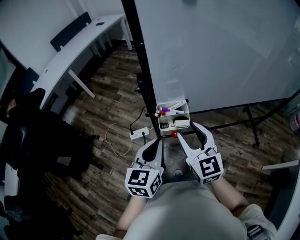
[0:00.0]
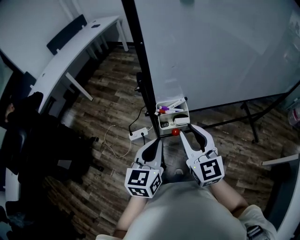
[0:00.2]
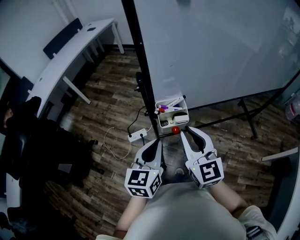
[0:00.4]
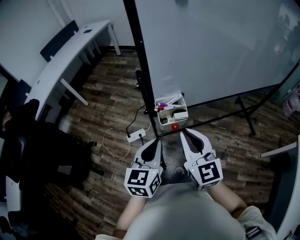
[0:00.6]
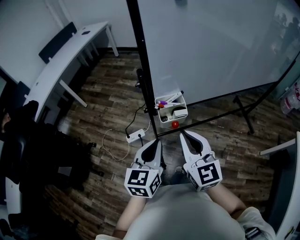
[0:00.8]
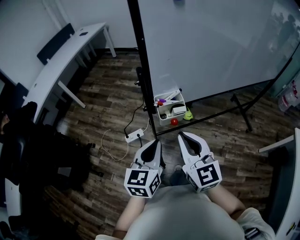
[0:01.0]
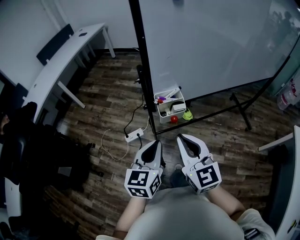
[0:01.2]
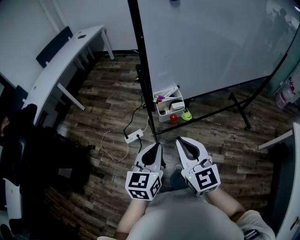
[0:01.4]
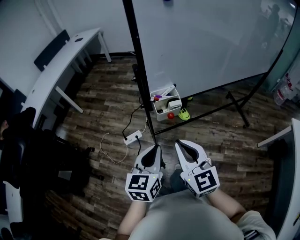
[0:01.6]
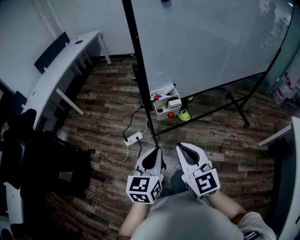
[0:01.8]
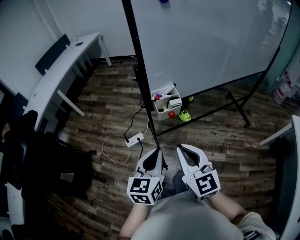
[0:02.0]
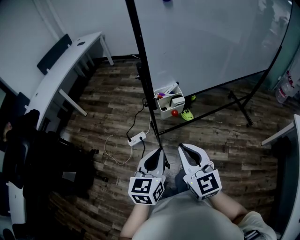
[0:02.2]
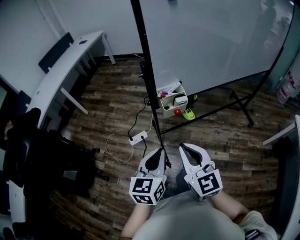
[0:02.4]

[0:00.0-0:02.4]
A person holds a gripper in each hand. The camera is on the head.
0:00.0 to 0:01.2: The right gripper shifts approximately 10 cm backward, and closes; the left gripper goes roughly 5 cm backward.
0:01.2 to 0:02.4: The grippers both shift backward by some 5 cm.

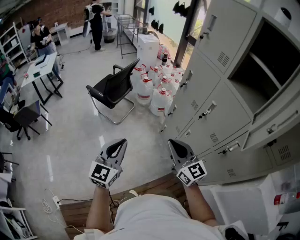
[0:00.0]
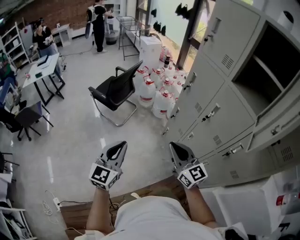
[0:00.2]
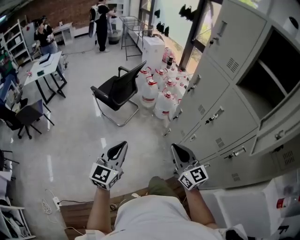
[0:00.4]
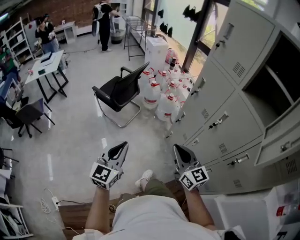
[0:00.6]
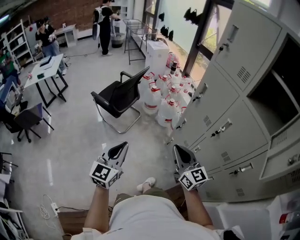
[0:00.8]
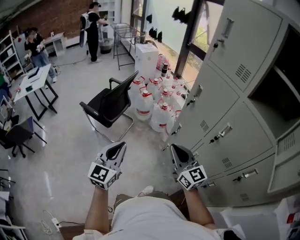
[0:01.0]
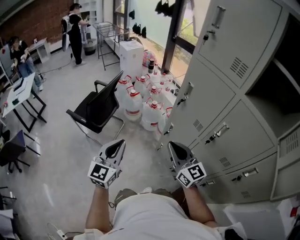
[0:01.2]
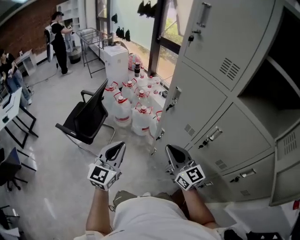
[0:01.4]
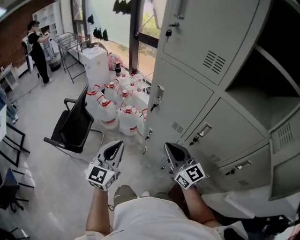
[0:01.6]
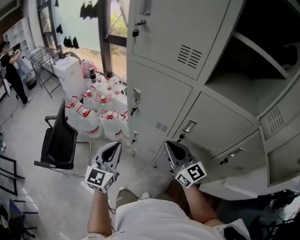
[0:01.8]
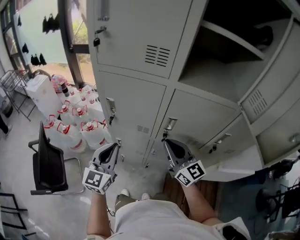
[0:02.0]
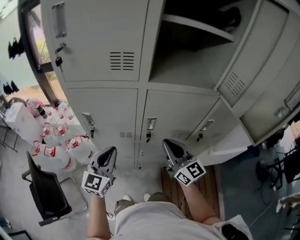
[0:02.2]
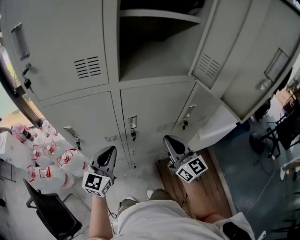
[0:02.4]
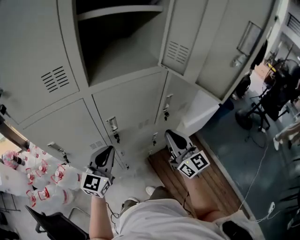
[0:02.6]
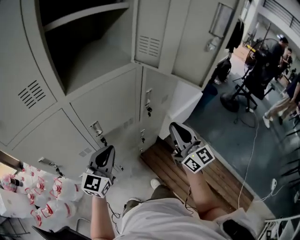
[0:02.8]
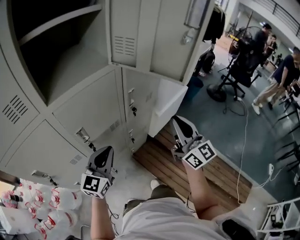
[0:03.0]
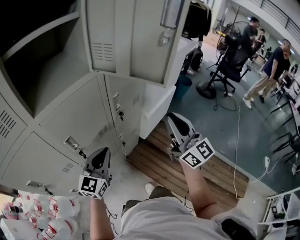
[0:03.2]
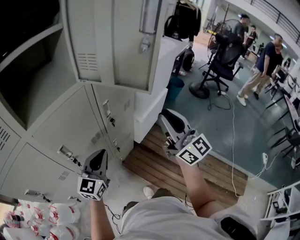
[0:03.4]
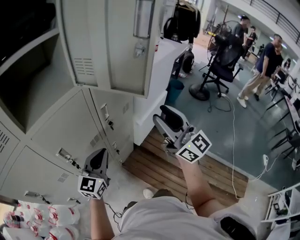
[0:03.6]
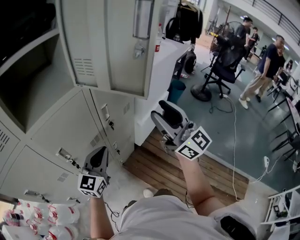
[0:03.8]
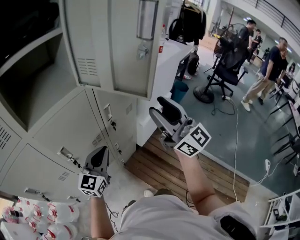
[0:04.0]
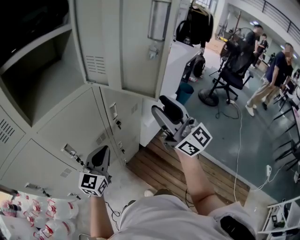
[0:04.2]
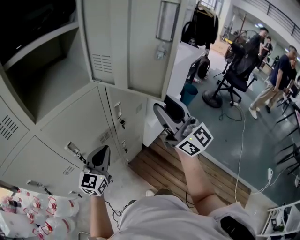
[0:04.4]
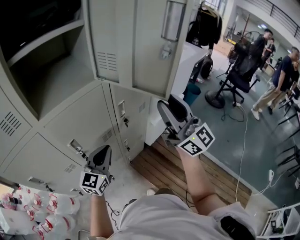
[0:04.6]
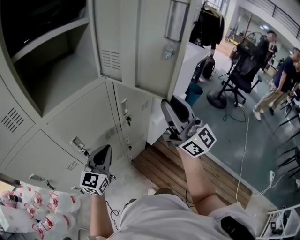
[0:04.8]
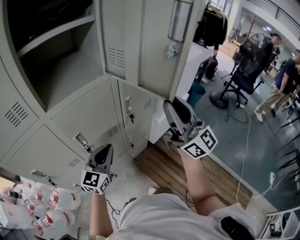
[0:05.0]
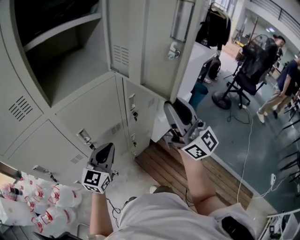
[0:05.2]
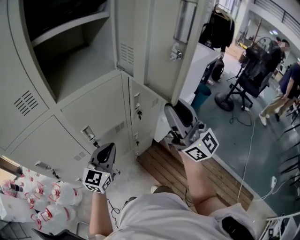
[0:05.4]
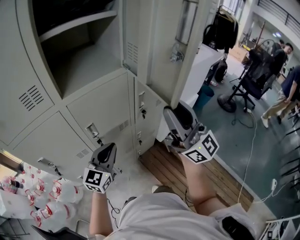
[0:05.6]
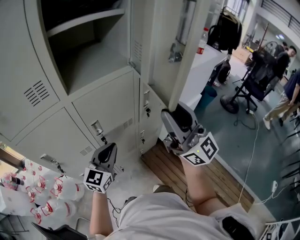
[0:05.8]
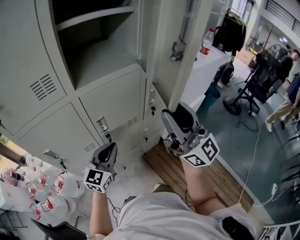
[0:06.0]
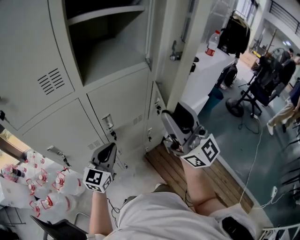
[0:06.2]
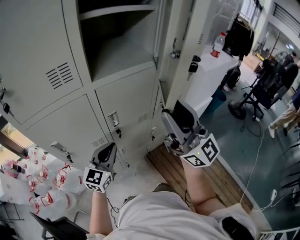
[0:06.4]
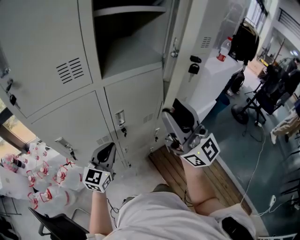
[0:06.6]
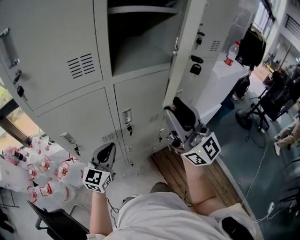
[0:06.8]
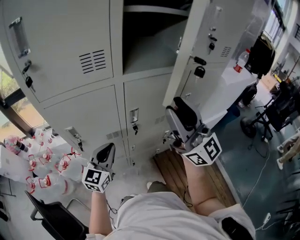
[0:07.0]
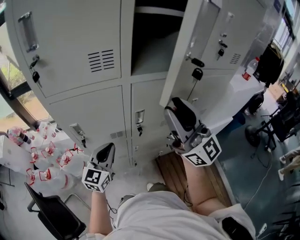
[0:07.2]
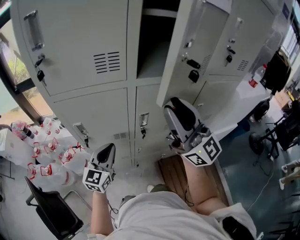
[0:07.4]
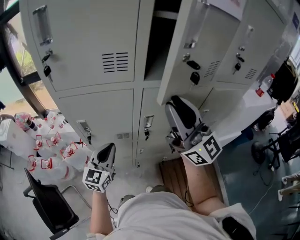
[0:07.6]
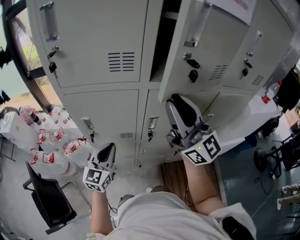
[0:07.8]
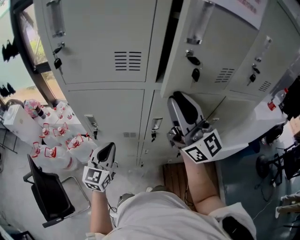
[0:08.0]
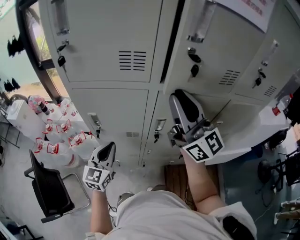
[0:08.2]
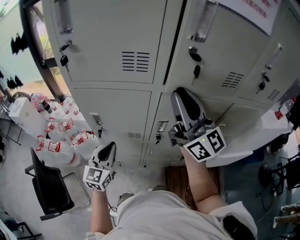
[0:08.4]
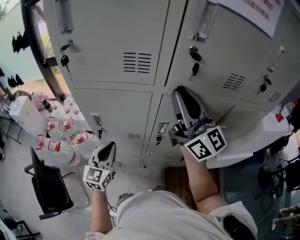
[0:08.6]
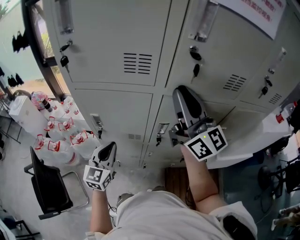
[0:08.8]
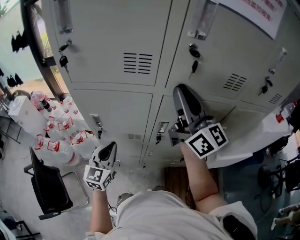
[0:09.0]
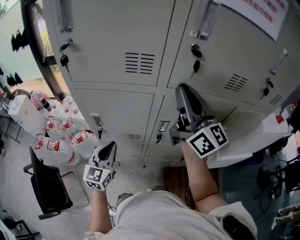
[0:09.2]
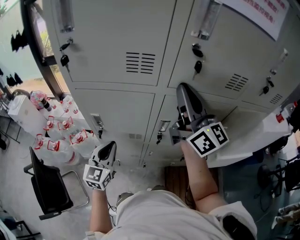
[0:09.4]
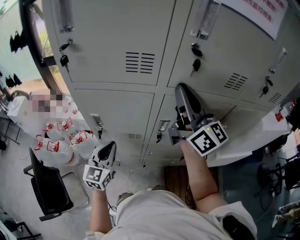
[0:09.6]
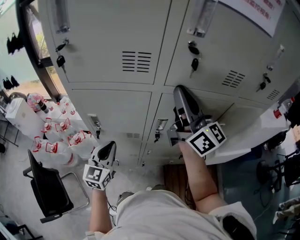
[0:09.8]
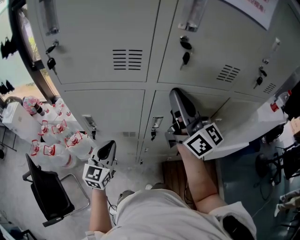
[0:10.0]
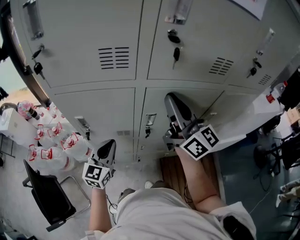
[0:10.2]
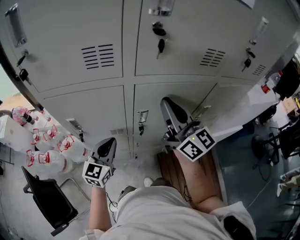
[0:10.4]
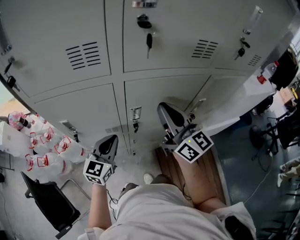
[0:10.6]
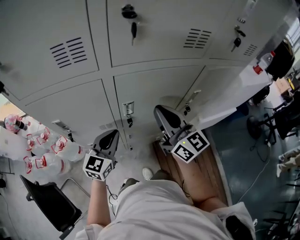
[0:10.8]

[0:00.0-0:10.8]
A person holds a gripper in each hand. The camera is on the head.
0:00.0 to 0:01.6: The left gripper goes approximately 35 cm forward, and turns by some 20 degrees. Meanwhile the right gripper heads forward and to the right, covering approximately 30 cm, and changes its angle by about 20 degrees.
0:01.6 to 0:03.0: The right gripper changes place by approximately 35 cm, and swivels about 90 degrees; the left gripper moves roughly 35 cm, and rotates some 80 degrees.
0:03.0 to 0:04.6: The right gripper goes some 10 cm upward, and opens up.
0:04.6 to 0:06.2: Both grippers travel together to the left and backward, approximately 15 cm.
0:06.2 to 0:07.8: The left gripper moves about 15 cm, and turns by approximately 30 degrees. The right gripper moves some 15 cm, and turns by about 20 degrees.
0:07.8 to 0:09.2: The right gripper heads forward, covering approximately 10 cm.
0:09.2 to 0:10.8: The right gripper moves downward and to the right, approximately 20 cm; the left gripper travels to the right by approximately 15 cm, and changes its angle by some 20 degrees.

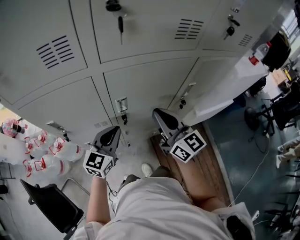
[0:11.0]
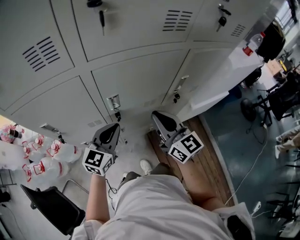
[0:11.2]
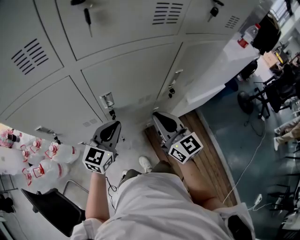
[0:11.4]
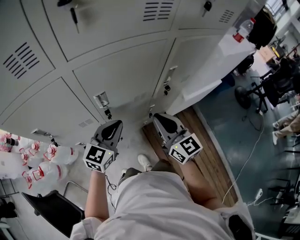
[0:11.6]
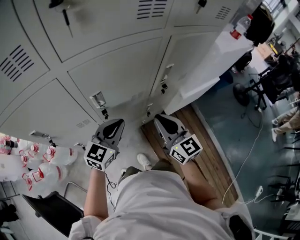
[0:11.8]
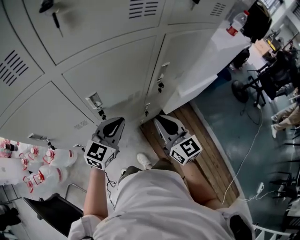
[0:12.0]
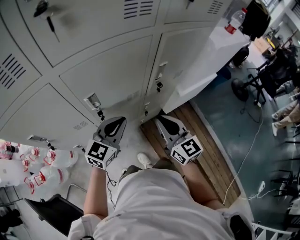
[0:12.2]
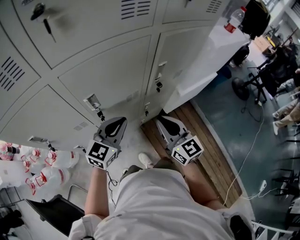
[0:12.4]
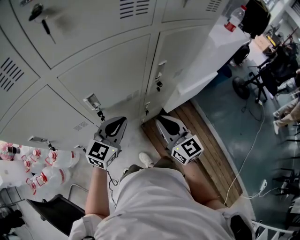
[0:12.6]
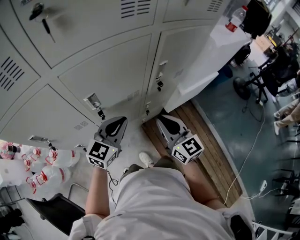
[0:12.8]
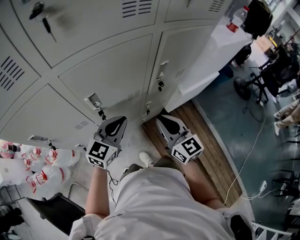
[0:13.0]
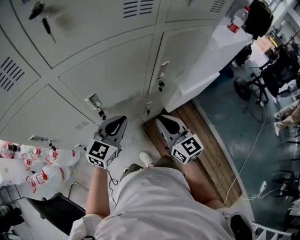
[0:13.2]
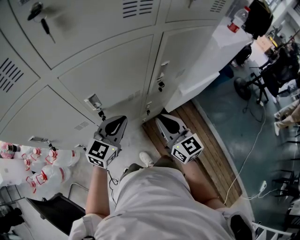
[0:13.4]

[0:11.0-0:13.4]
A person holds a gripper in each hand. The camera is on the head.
0:11.0 to 0:12.2: The right gripper travels to the right and downward by approximately 15 cm. The left gripper heads to the right, covering roughly 10 cm.
0:12.2 to 0:13.4: Both grippers stay about where they are.

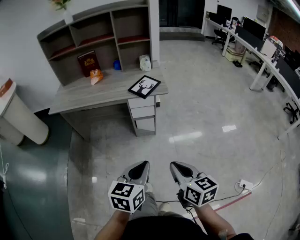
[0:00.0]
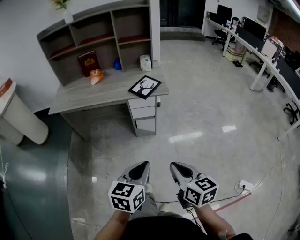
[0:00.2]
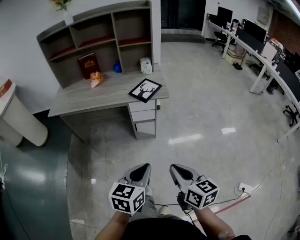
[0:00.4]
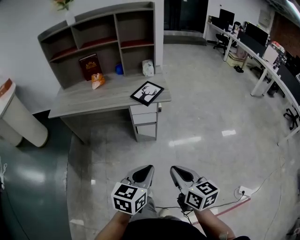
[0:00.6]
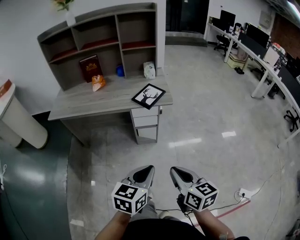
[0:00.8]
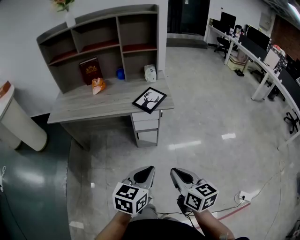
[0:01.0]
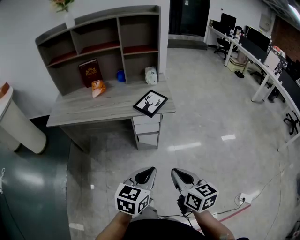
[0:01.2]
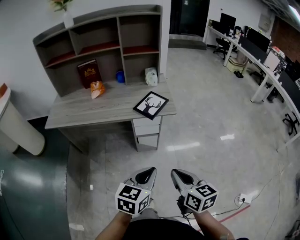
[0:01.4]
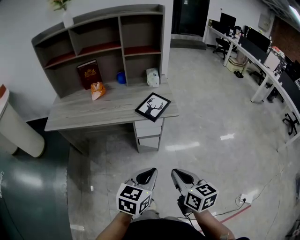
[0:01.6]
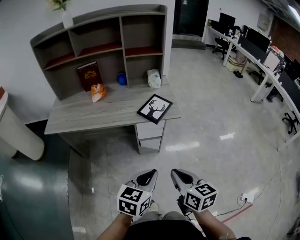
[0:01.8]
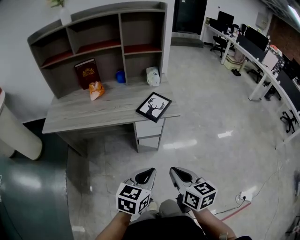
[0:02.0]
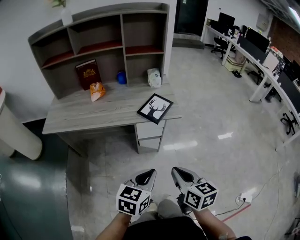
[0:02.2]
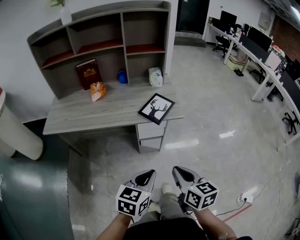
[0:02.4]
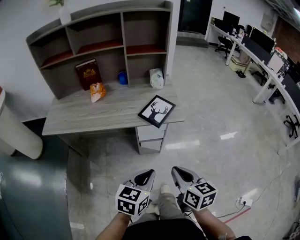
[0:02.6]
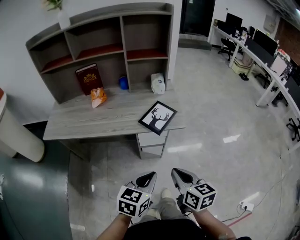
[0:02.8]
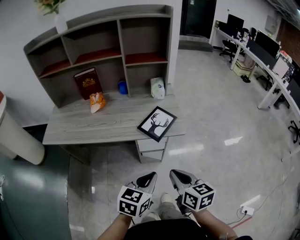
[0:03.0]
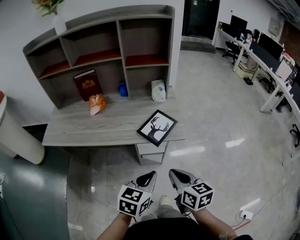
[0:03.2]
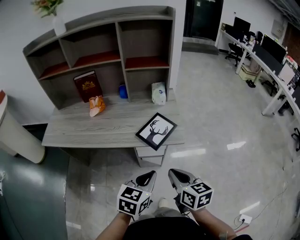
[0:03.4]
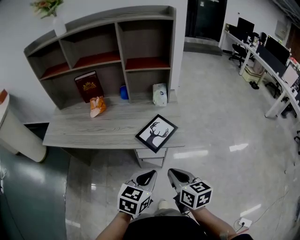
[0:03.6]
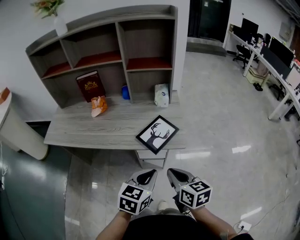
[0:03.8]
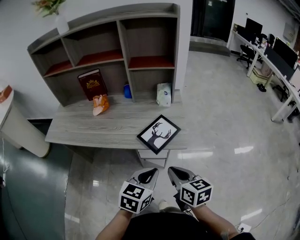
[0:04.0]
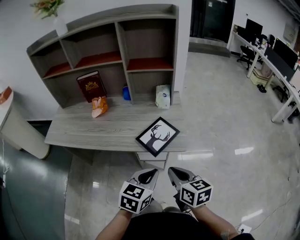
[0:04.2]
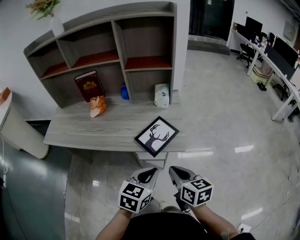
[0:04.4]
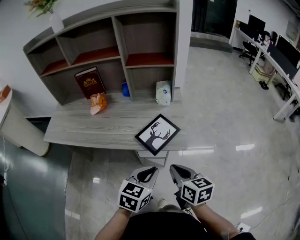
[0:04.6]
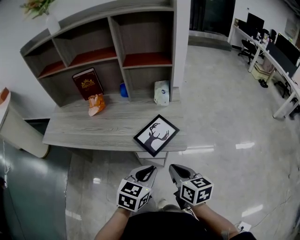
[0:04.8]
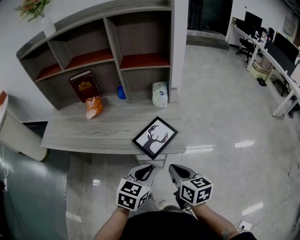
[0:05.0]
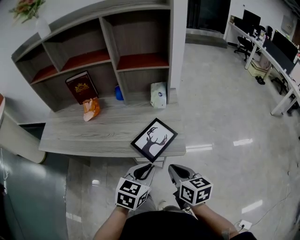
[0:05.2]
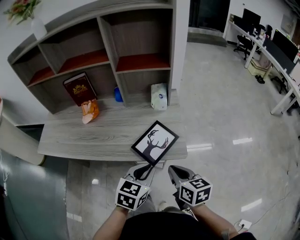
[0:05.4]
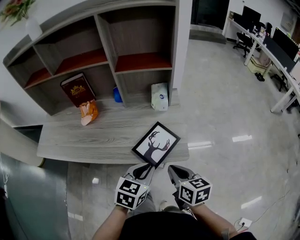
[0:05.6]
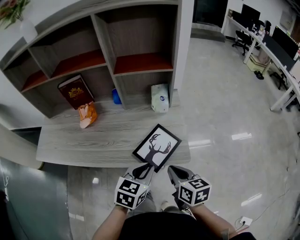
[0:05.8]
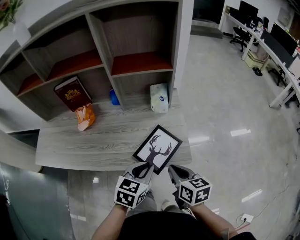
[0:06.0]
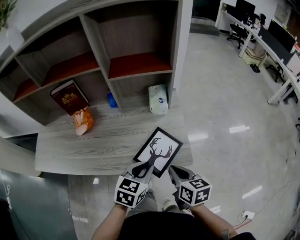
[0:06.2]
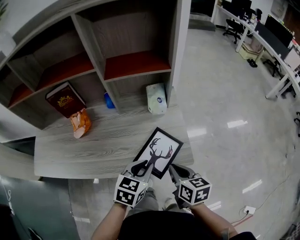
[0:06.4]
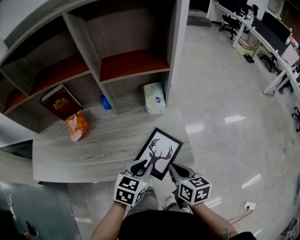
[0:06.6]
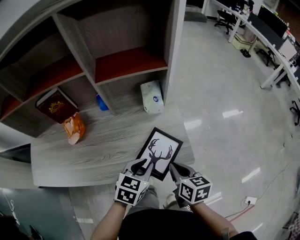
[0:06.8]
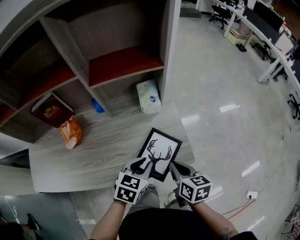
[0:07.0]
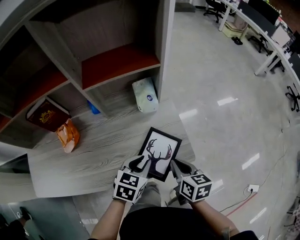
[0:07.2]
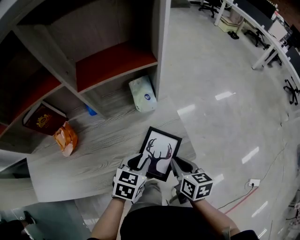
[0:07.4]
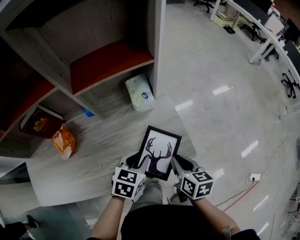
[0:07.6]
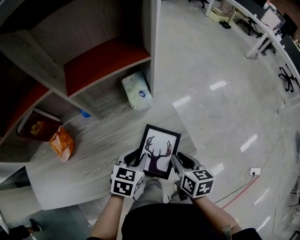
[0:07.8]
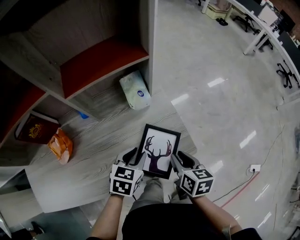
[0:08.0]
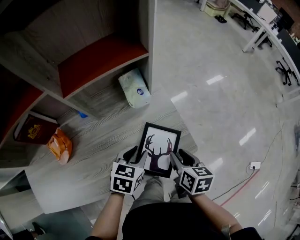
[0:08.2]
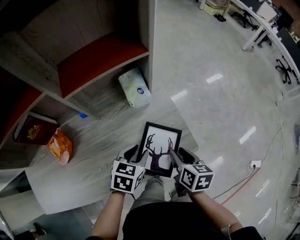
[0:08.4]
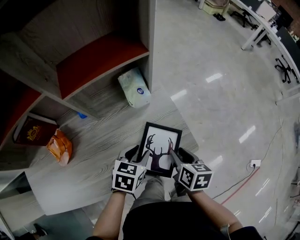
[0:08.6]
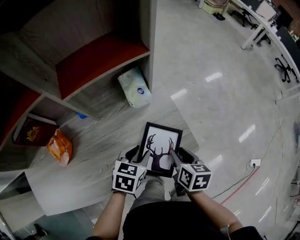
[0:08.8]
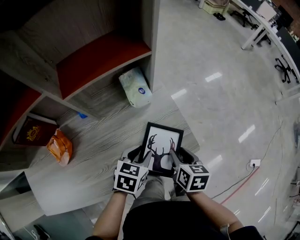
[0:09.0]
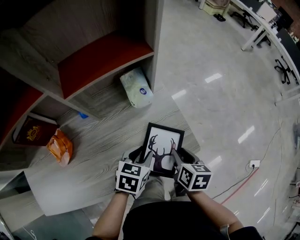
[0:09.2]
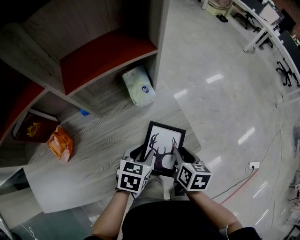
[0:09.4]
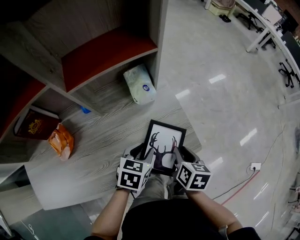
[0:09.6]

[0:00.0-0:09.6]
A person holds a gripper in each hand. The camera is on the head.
0:00.0 to 0:01.6: Both grippers move forward, roughly 15 cm.
0:01.6 to 0:03.2: Both grippers travel together forward, about 15 cm.
0:03.2 to 0:04.8: The grippers both shift forward by roughly 10 cm.
0:04.8 to 0:06.4: The two grippers go approximately 15 cm forward.
0:06.4 to 0:08.0: The left gripper goes roughly 10 cm forward and downward, while the right gripper shifts by some 5 cm, swivels roughly 20 degrees, and opens up.
0:08.0 to 0:09.6: There are only small adjustments of the grippers.
